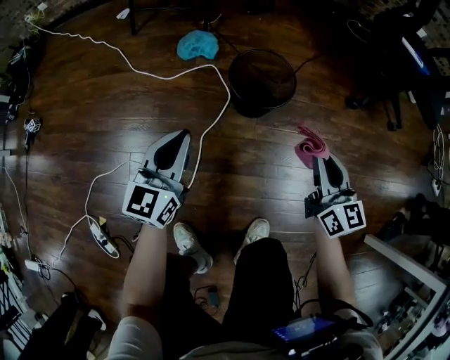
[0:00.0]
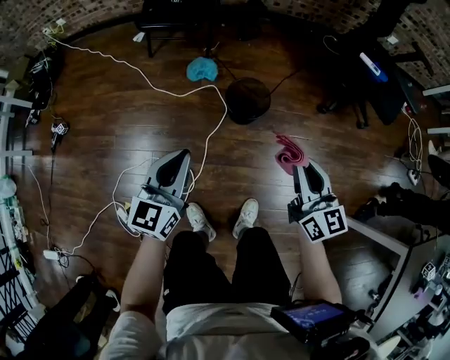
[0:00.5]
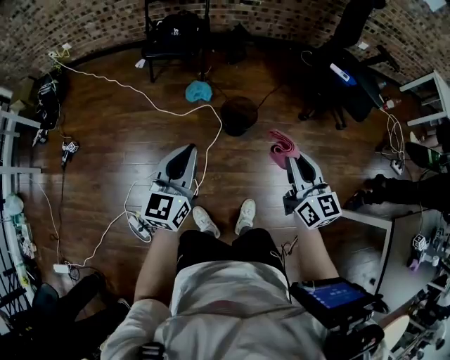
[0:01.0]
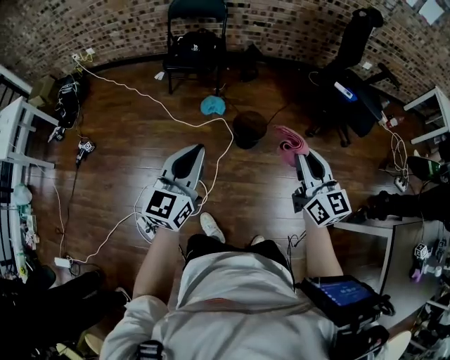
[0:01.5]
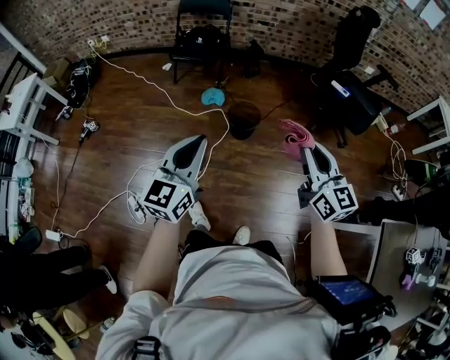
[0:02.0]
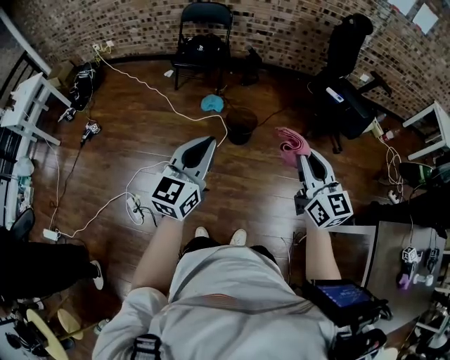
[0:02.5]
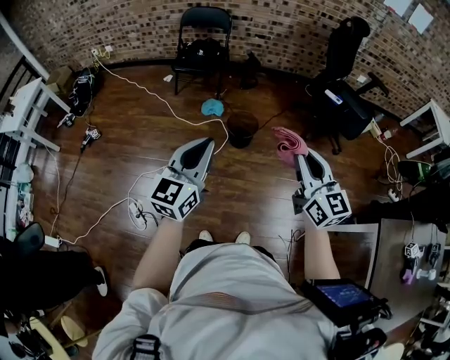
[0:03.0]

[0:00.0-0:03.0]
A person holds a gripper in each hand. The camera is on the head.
0:00.0 to 0:01.5: Both grippers travel together upward, roughly 60 cm.
0:01.5 to 0:03.0: The two grippers go some 20 cm backward, to the right and upward.

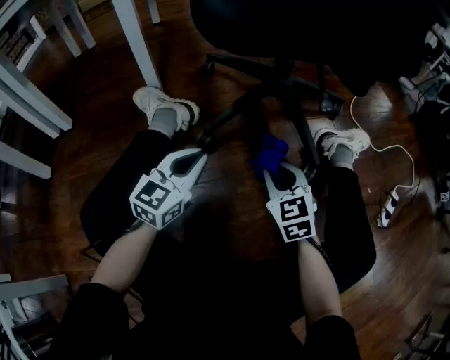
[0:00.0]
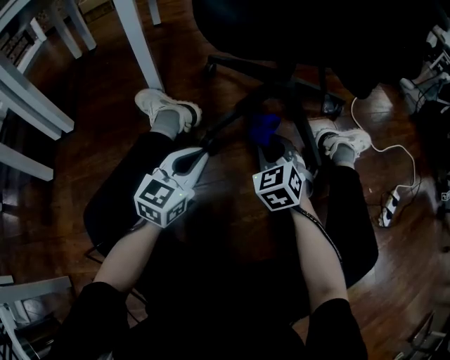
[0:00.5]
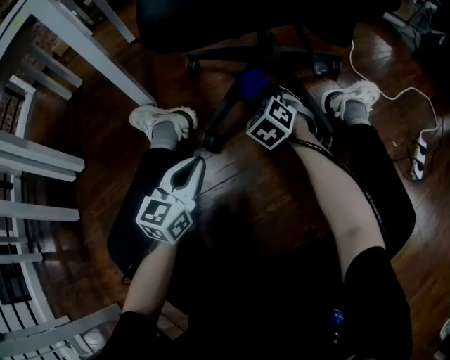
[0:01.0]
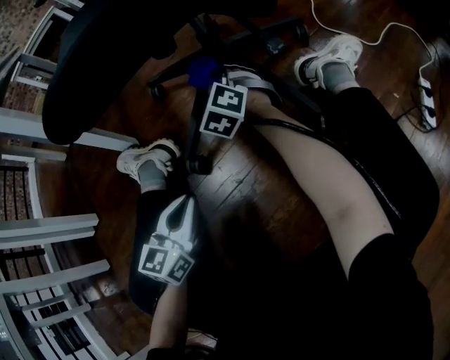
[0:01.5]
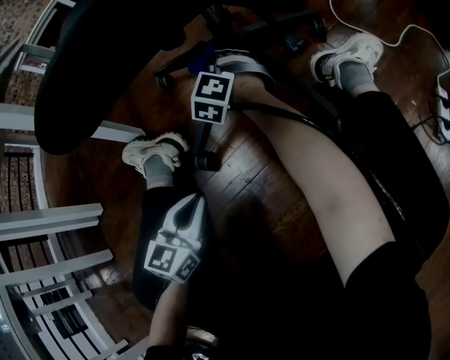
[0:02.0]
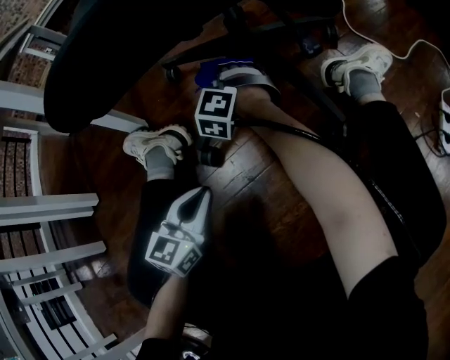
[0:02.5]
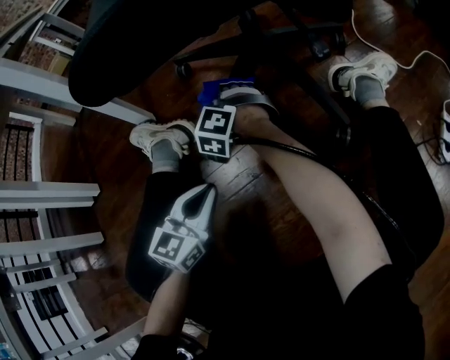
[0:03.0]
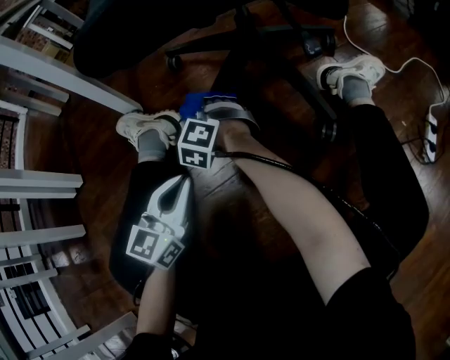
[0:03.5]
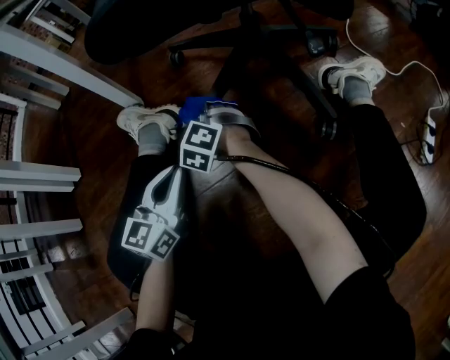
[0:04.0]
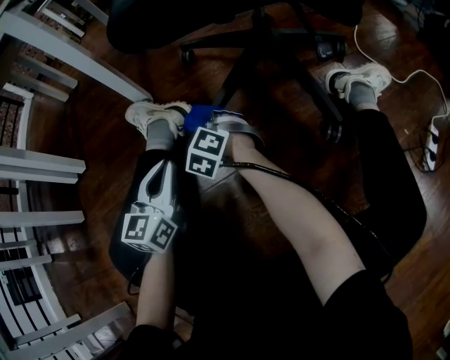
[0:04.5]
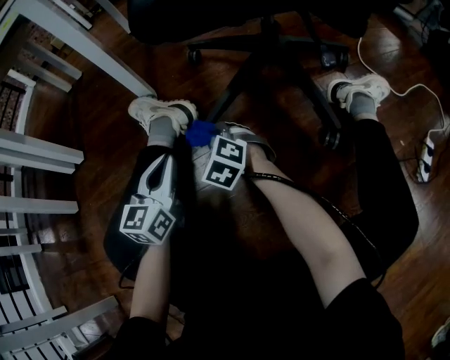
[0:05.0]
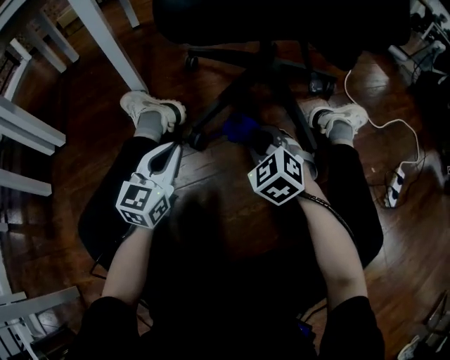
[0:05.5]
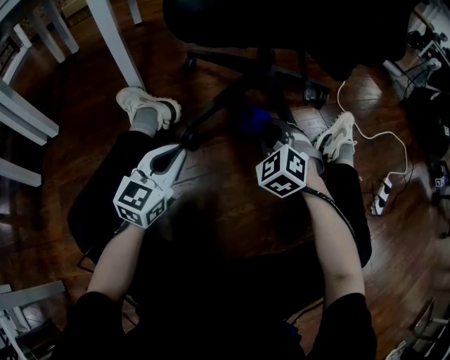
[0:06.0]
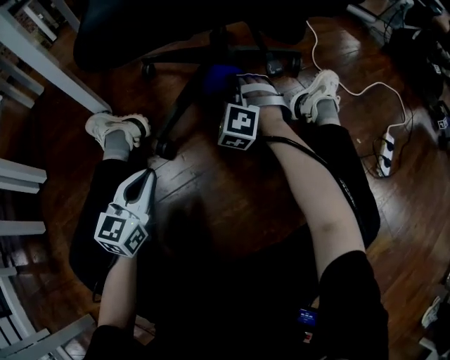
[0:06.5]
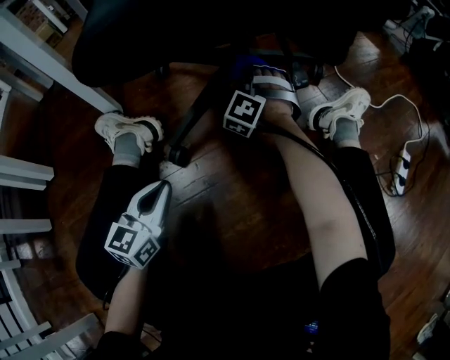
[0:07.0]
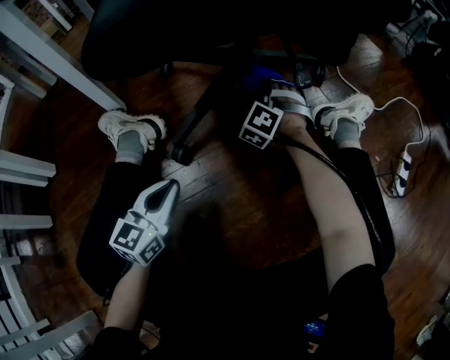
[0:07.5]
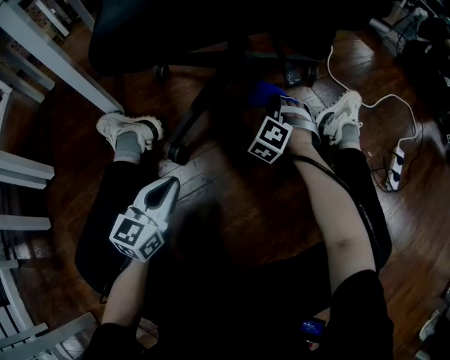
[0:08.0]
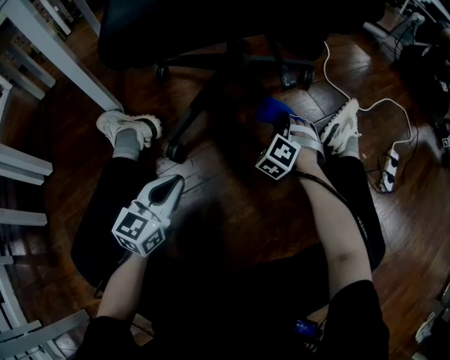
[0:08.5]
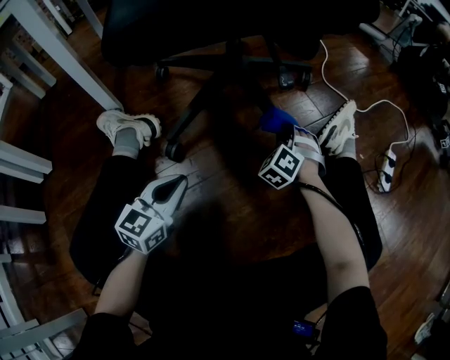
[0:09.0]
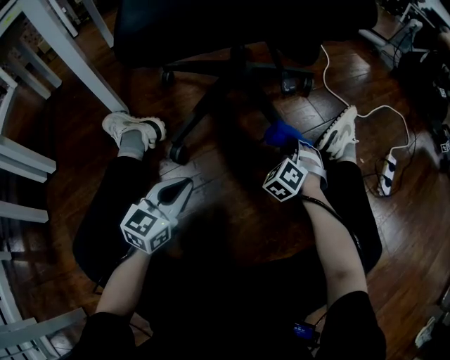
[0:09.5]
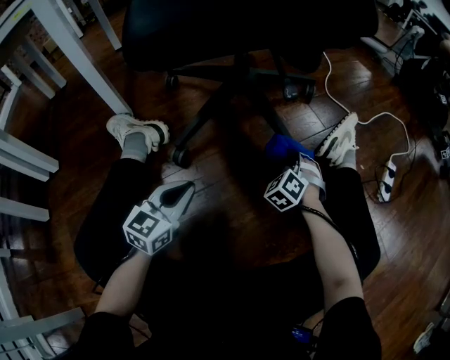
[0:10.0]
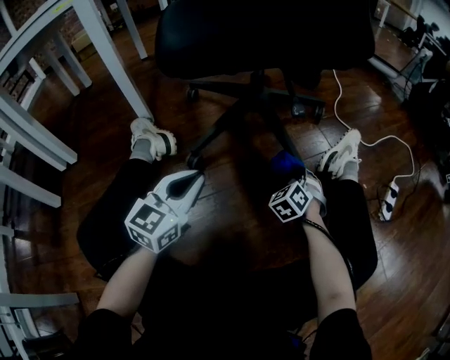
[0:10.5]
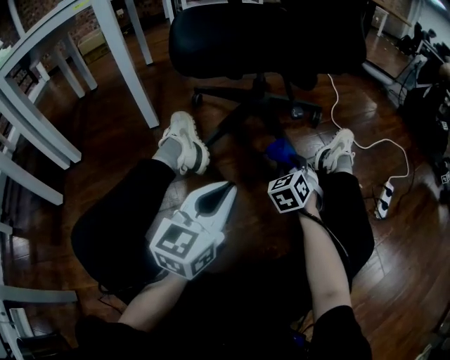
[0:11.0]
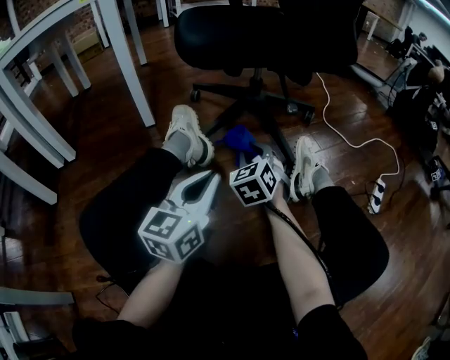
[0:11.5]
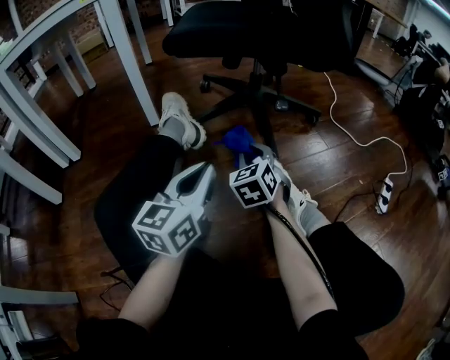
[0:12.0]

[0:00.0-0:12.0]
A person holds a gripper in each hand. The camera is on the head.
0:00.0 to 0:02.0: The right gripper moves forward, about 30 cm, and changes its angle by some 30 degrees.
0:02.0 to 0:04.0: The right gripper moves backward and to the left, roughly 20 cm. The left gripper ends up approximately 5 cm from where it was.
0:04.0 to 0:06.0: The right gripper shifts roughly 20 cm to the right and upward.
0:06.0 to 0:08.0: The right gripper heads forward, downward and to the right, covering some 15 cm, and swivels roughly 30 degrees.
0:08.0 to 0:10.0: The right gripper shifts about 15 cm to the right and backward.
0:10.0 to 0:12.0: The left gripper goes roughly 15 cm upward, and turns by roughly 30 degrees. Meanwhile the right gripper heads to the left, upward and backward, covering approximately 25 cm, and rotates about 30 degrees.

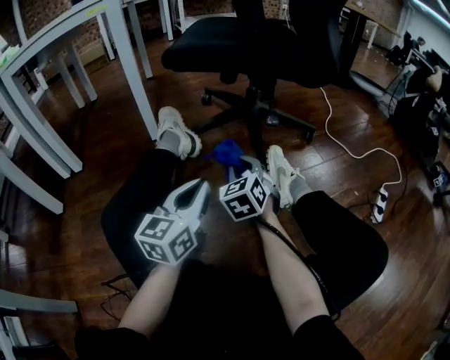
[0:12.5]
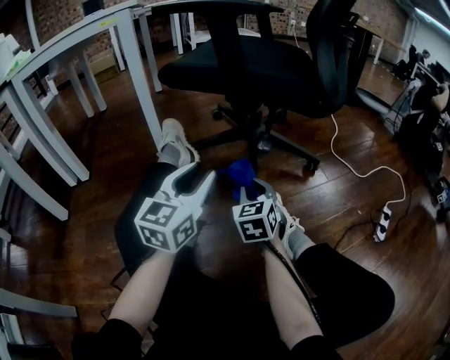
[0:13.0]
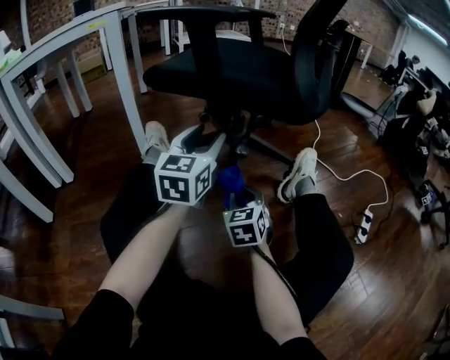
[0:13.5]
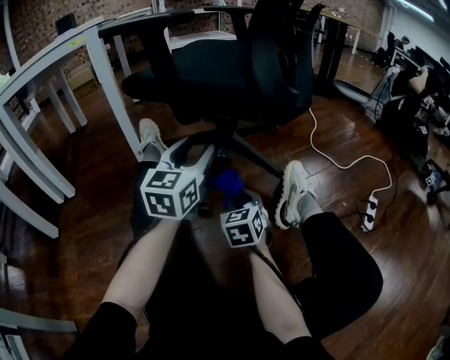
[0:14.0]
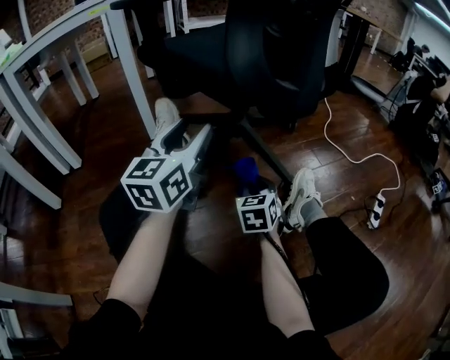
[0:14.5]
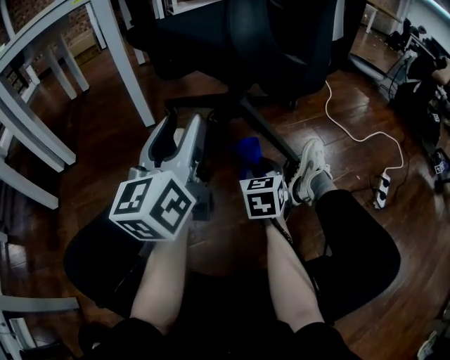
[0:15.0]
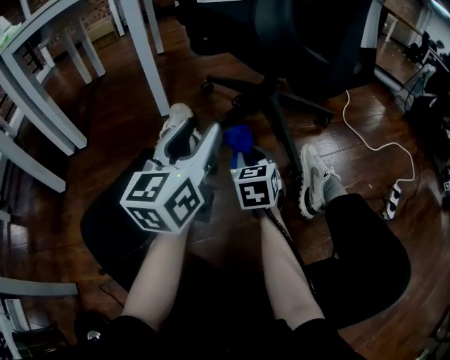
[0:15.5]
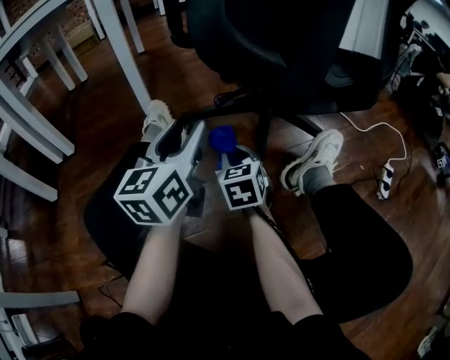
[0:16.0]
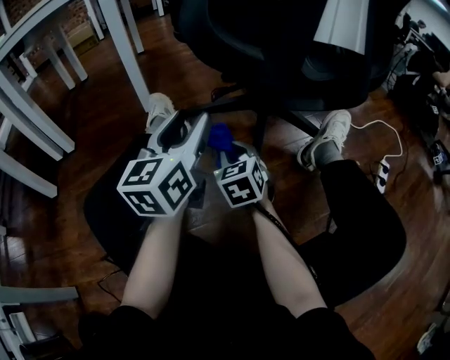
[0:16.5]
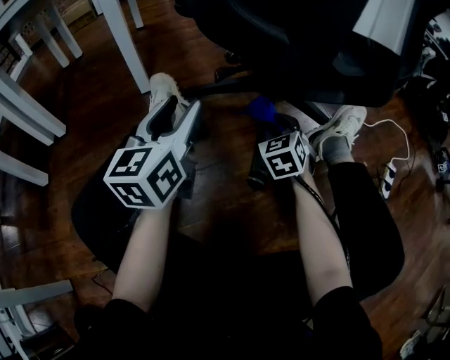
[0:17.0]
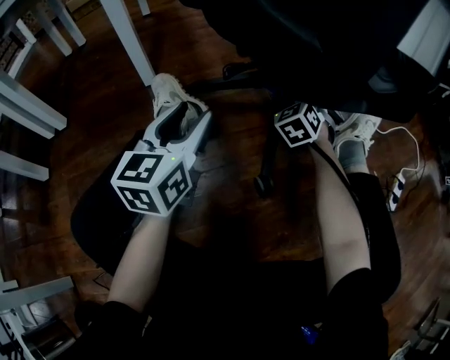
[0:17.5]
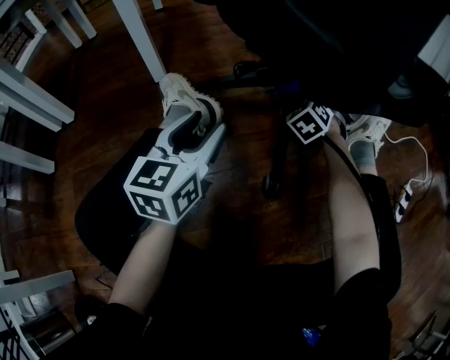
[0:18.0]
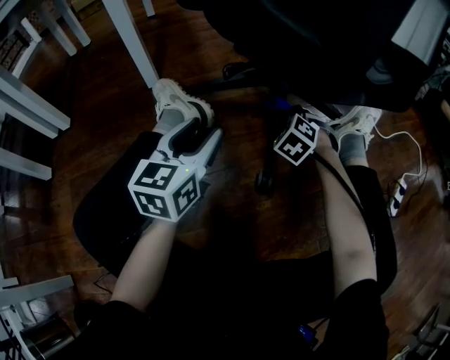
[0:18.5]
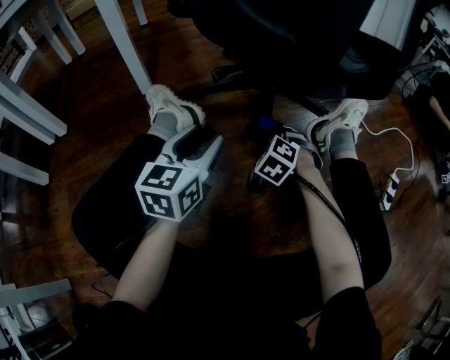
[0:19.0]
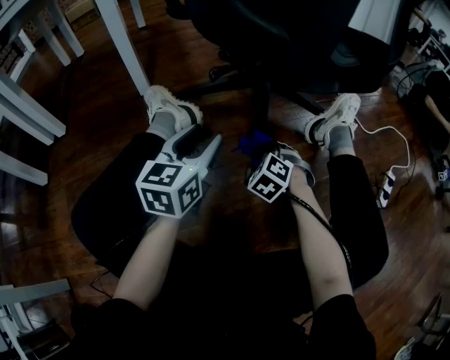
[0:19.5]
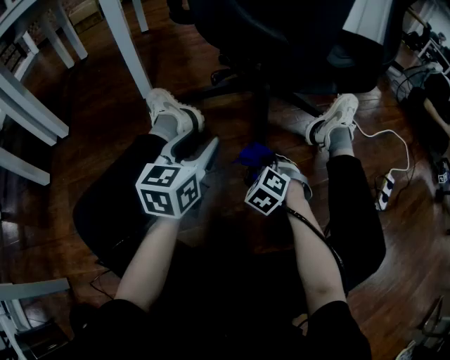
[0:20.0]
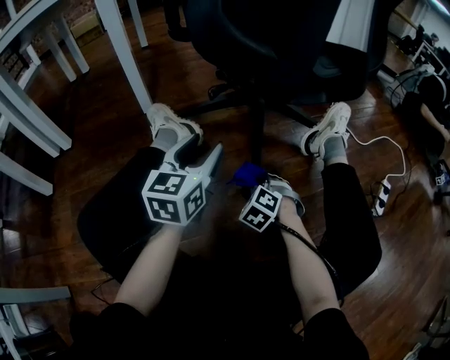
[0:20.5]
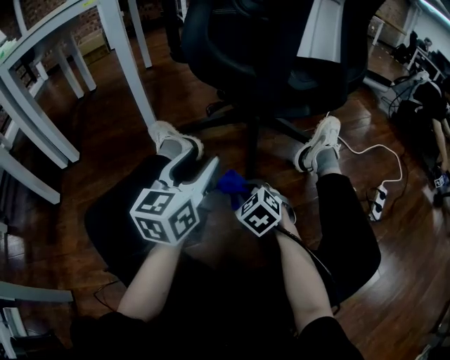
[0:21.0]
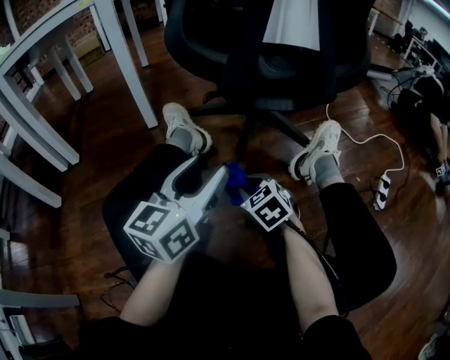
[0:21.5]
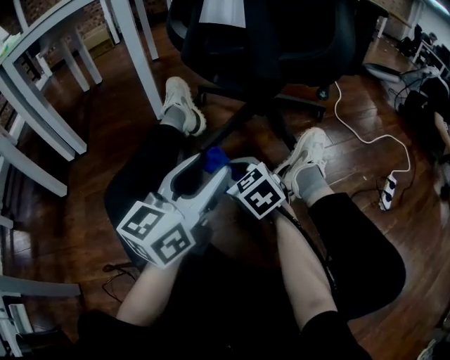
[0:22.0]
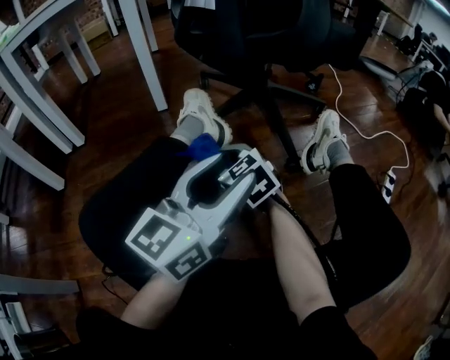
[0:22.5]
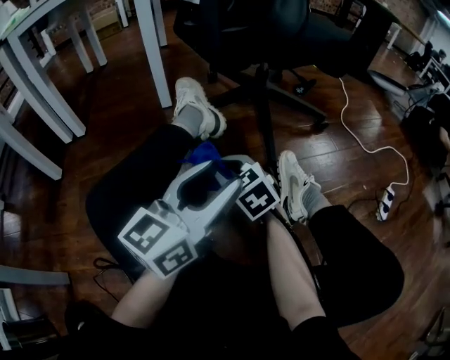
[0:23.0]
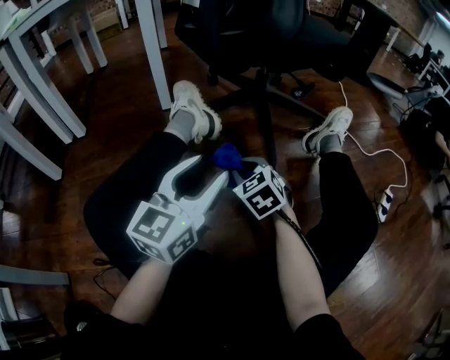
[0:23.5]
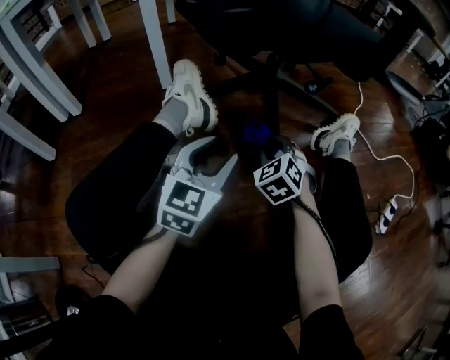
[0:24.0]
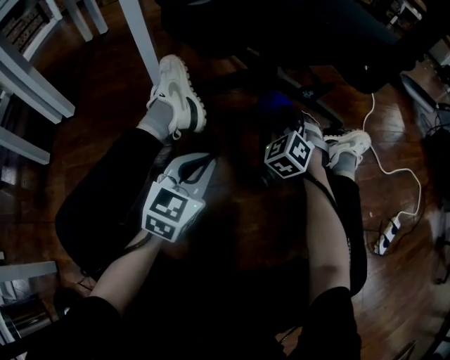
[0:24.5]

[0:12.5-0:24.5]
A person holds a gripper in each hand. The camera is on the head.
0:12.5 to 0:14.5: The left gripper heads upward and forward, covering about 15 cm, and opens up. Meanwhile the right gripper is displaced to the right by about 5 cm.
0:14.5 to 0:16.5: The left gripper moves backward, some 5 cm. The right gripper goes about 10 cm to the left.
0:16.5 to 0:18.5: The left gripper goes about 15 cm downward and forward. Meanwhile the right gripper goes roughly 20 cm forward, to the right and downward, and swivels some 40 degrees.
0:18.5 to 0:20.5: The right gripper is displaced backward by some 15 cm.
0:20.5 to 0:22.5: The left gripper moves backward and upward, about 20 cm, and rotates roughly 20 degrees. The right gripper is displaced to the left and upward by about 20 cm, and changes its angle by approximately 40 degrees.
0:22.5 to 0:24.5: The right gripper moves forward and to the right, roughly 30 cm, and rotates roughly 40 degrees, while the left gripper goes about 25 cm downward and forward, turns by approximately 40 degrees, and closes.
